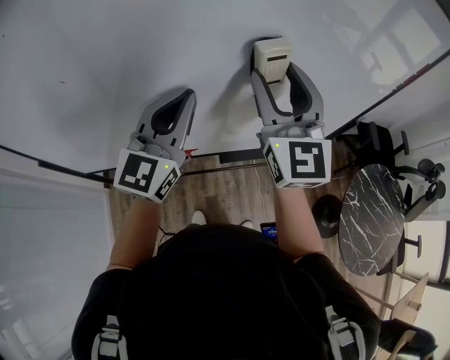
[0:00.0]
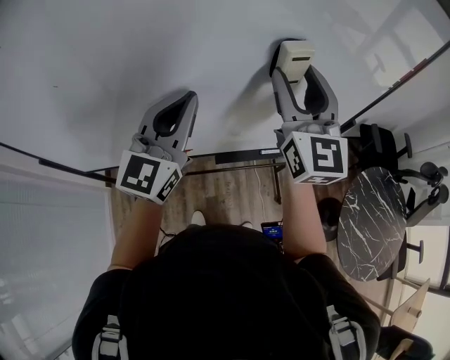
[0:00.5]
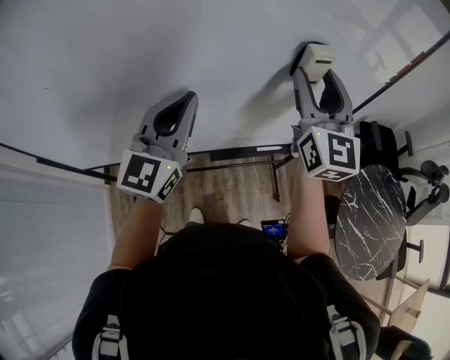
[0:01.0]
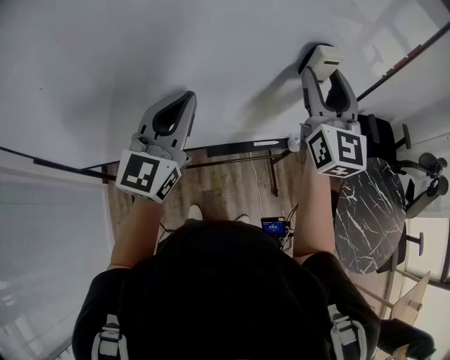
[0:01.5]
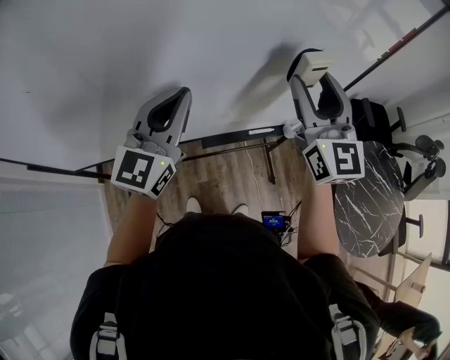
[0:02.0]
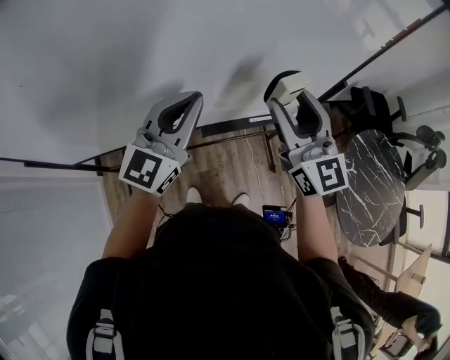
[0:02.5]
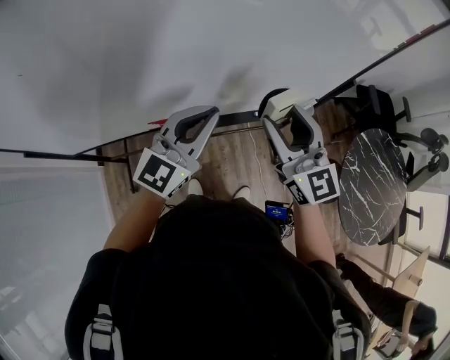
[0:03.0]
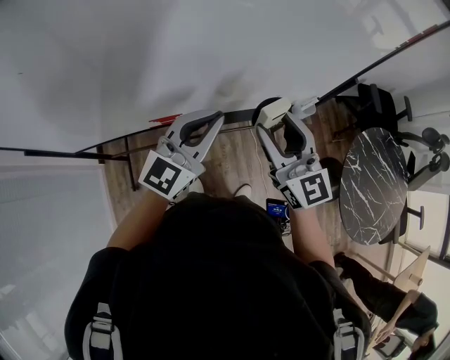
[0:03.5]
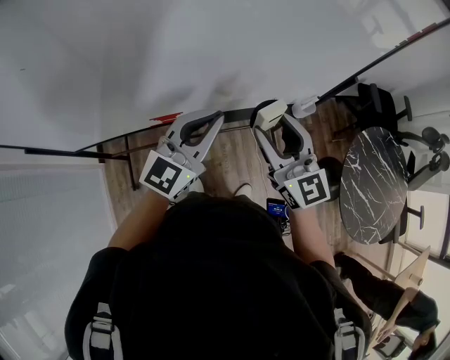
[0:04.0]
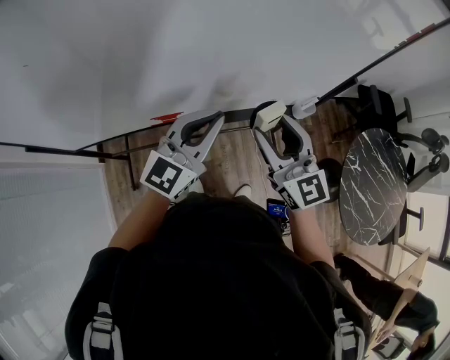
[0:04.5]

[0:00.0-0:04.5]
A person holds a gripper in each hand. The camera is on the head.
0:00.0 to 0:02.0: The left gripper goes roughly 5 cm to the right; the right gripper shifts roughly 15 cm to the right.
0:02.0 to 0:04.5: The right gripper goes some 20 cm downward, backward and to the left. The left gripper is displaced downward and backward by about 10 cm.

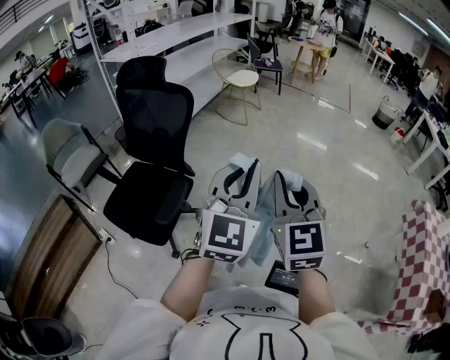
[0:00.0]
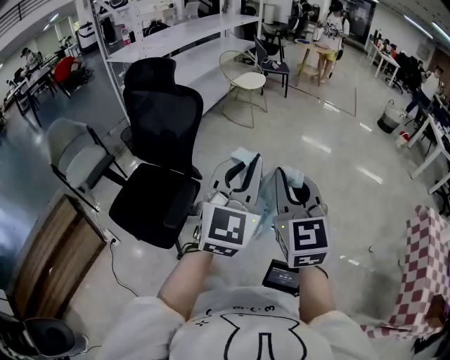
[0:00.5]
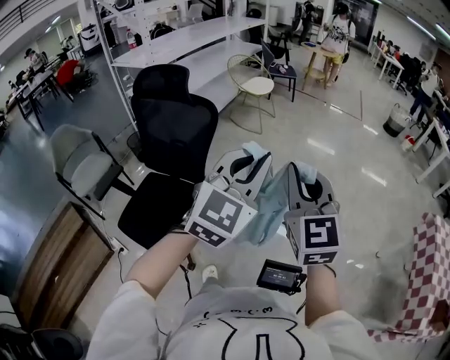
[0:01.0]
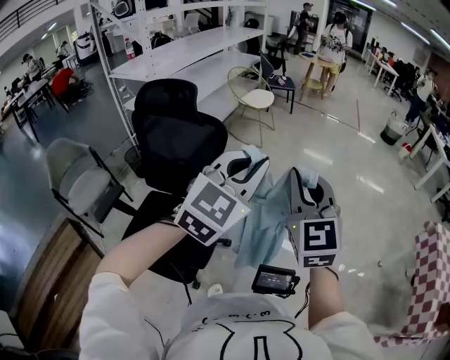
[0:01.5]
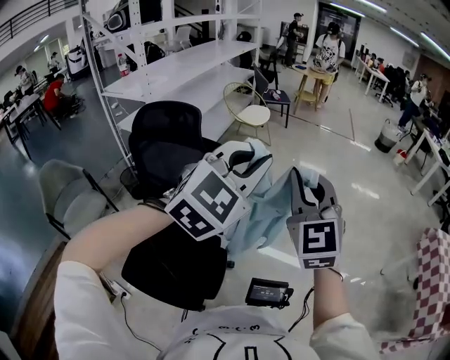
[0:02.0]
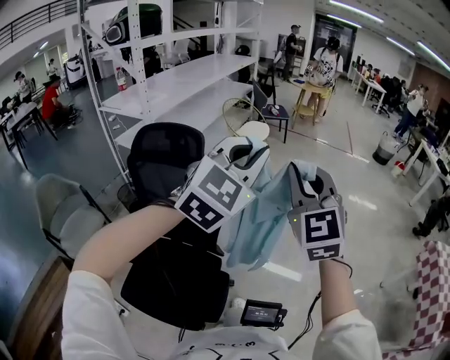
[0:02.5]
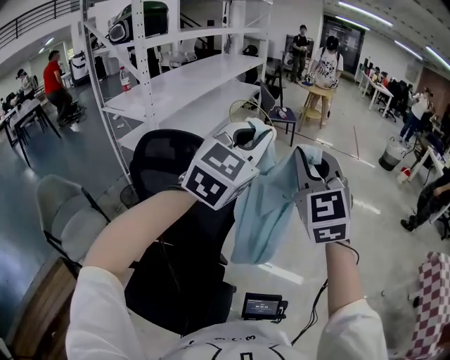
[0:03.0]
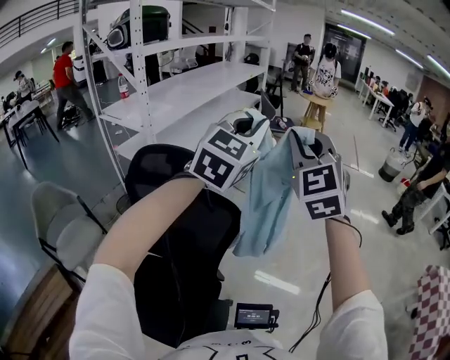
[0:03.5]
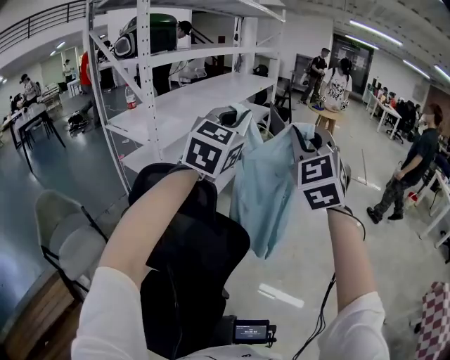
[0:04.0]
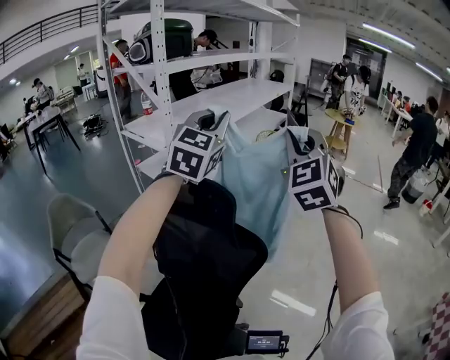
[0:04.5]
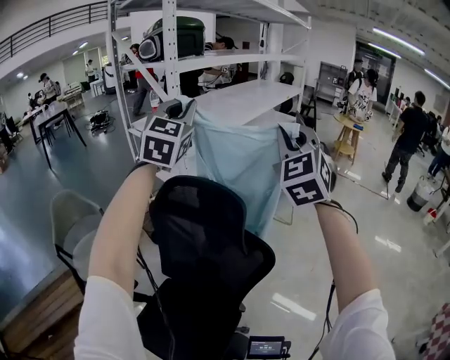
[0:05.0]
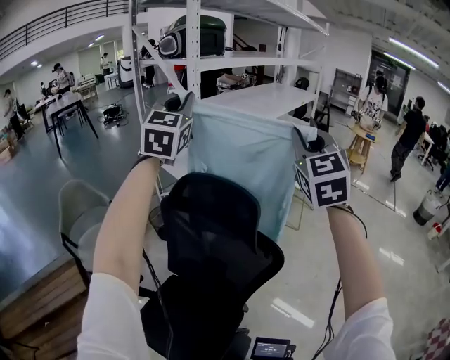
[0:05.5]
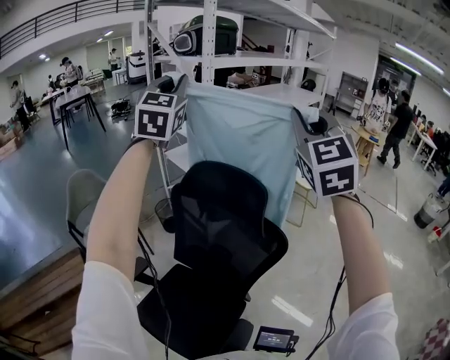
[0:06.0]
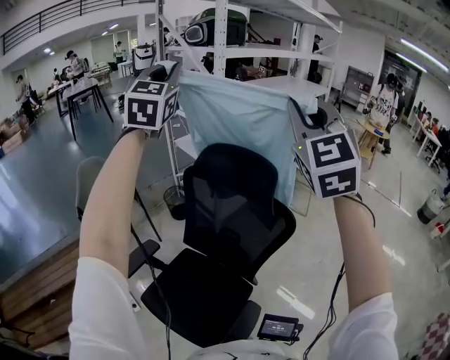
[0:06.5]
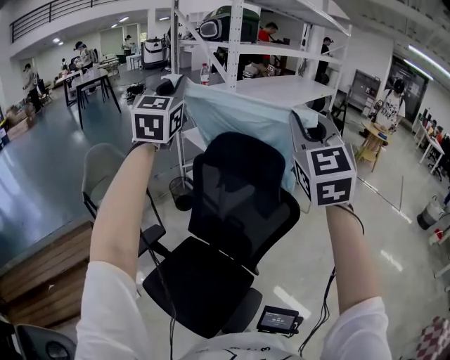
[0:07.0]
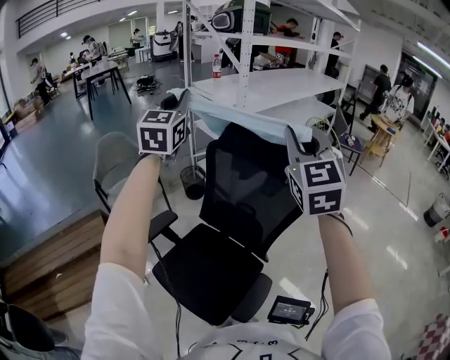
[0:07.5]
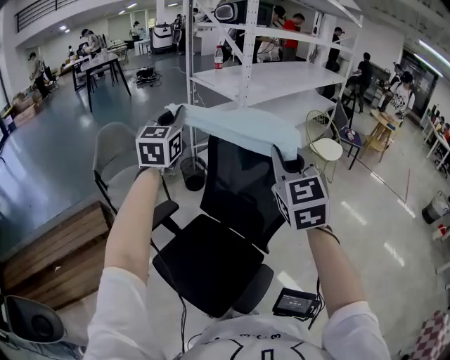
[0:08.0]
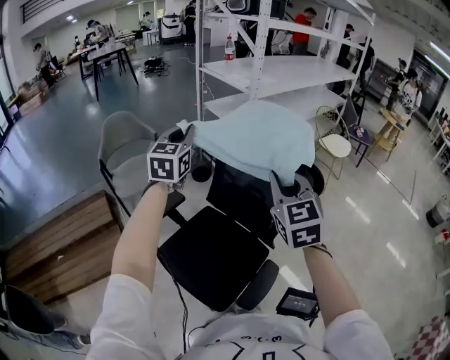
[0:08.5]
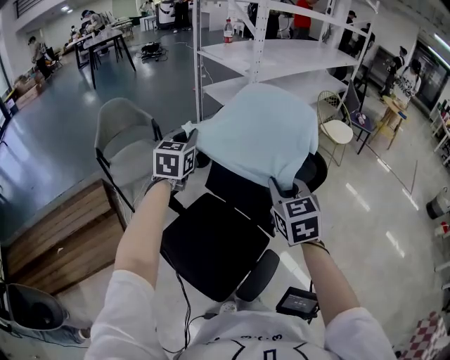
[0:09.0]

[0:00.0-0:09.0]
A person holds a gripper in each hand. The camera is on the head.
0:00.0 to 0:02.0: The grippers both shift to the left and forward by approximately 30 cm. The left gripper rotates approximately 30 degrees.
0:02.0 to 0:04.5: The pair of grippers is taken forward and to the left, approximately 40 cm. The left gripper changes its angle by about 30 degrees.
0:04.5 to 0:07.0: Both grippers move to the left and backward, about 30 cm. The left gripper swivels approximately 30 degrees; the right gripper rotates some 20 degrees.
0:07.0 to 0:09.0: The grippers both shift downward by approximately 30 cm. The right gripper turns by about 40 degrees, while the left gripper turns by roughly 30 degrees.

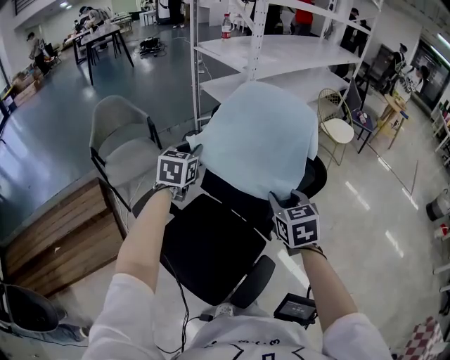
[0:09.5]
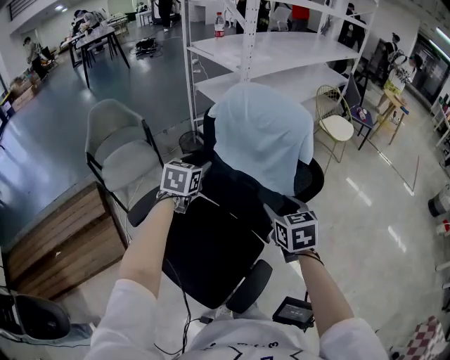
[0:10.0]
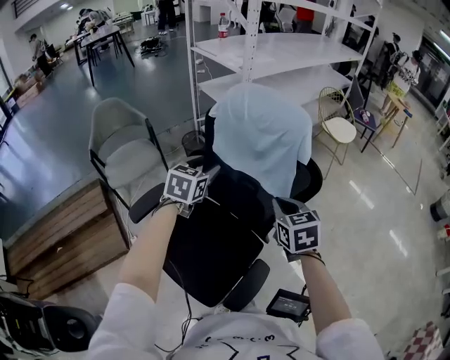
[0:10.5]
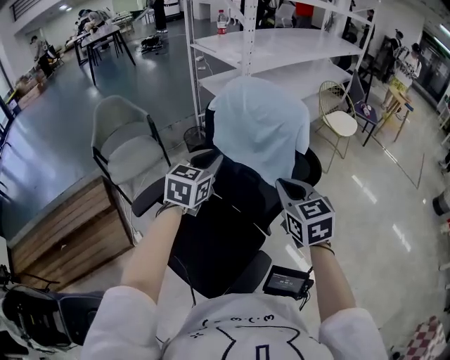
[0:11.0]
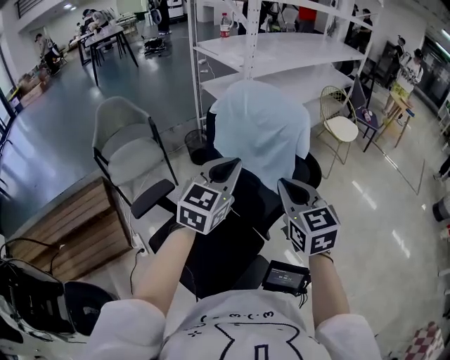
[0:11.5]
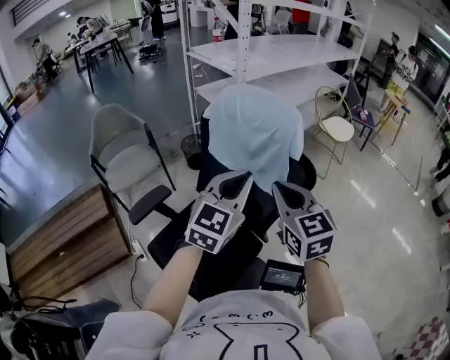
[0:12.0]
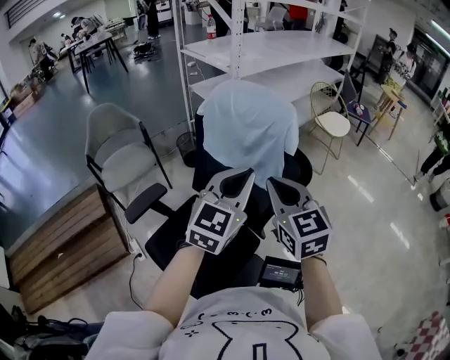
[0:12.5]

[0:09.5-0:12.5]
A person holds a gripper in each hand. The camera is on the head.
0:09.5 to 0:11.0: The right gripper ends up approximately 5 cm from where it was, and closes up; the left gripper is displaced to the right and backward by some 10 cm, and opens, then closes again.
0:11.0 to 0:12.5: The left gripper heads to the right, backward and upward, covering about 15 cm, swivels approximately 20 degrees, and closes.

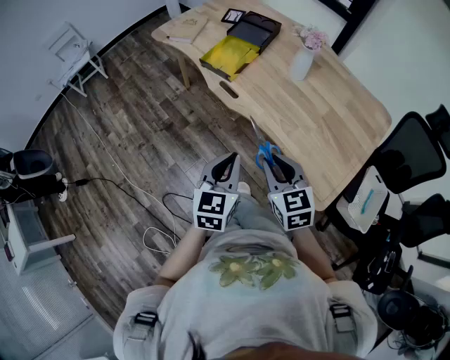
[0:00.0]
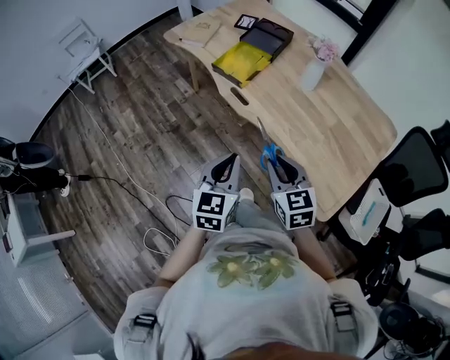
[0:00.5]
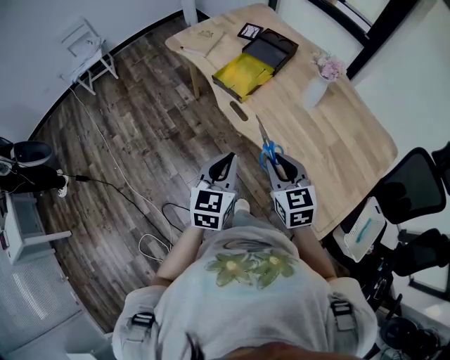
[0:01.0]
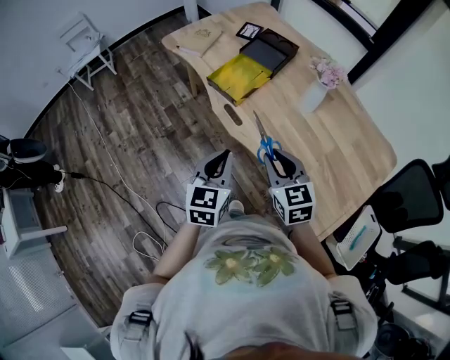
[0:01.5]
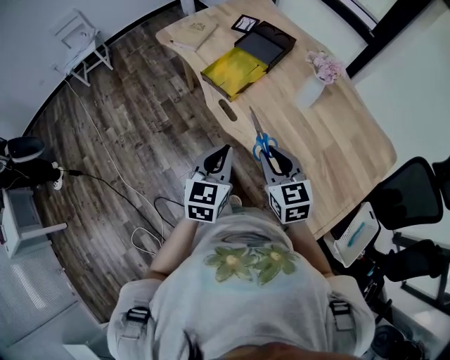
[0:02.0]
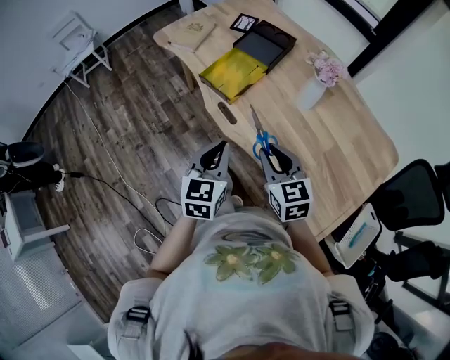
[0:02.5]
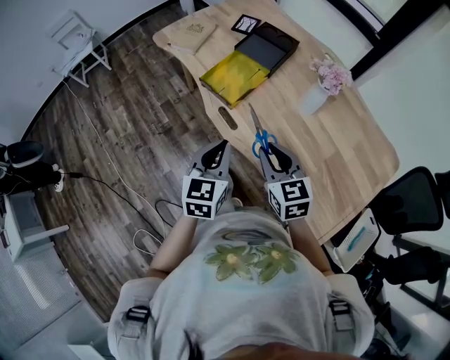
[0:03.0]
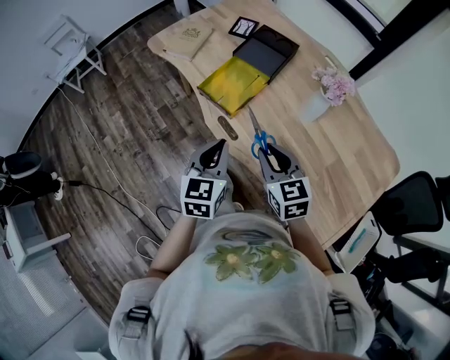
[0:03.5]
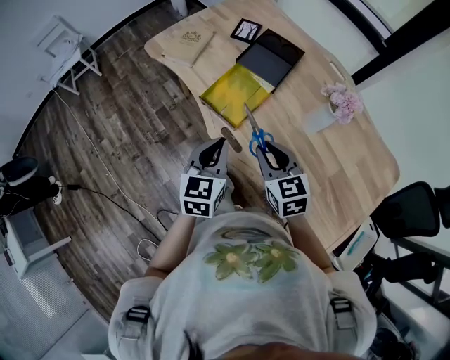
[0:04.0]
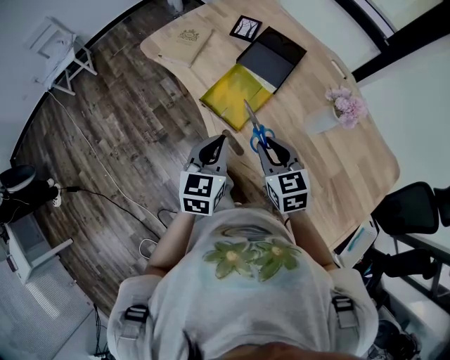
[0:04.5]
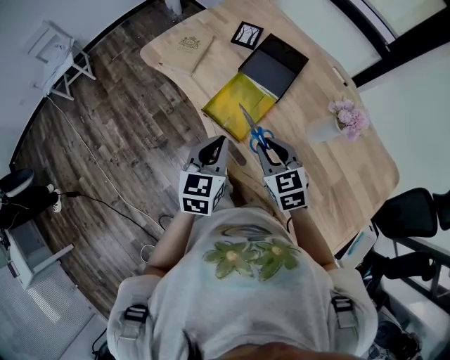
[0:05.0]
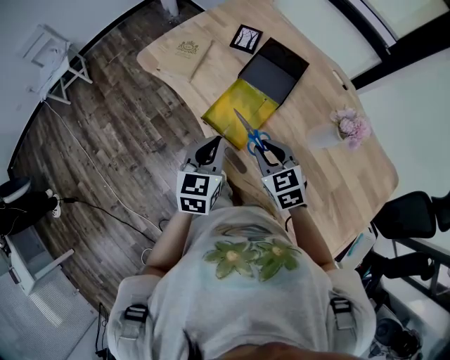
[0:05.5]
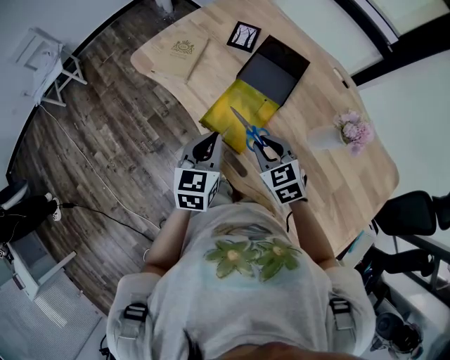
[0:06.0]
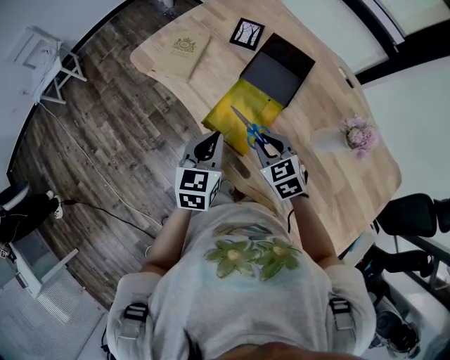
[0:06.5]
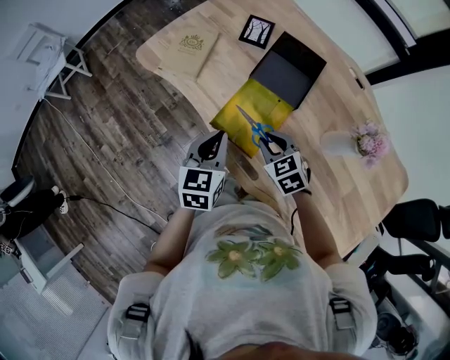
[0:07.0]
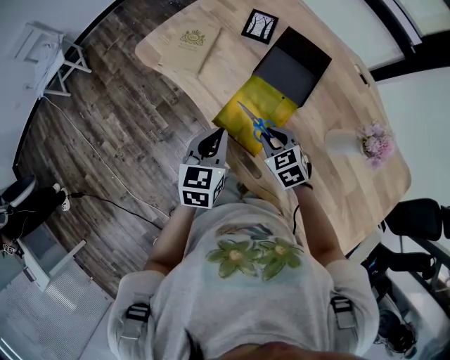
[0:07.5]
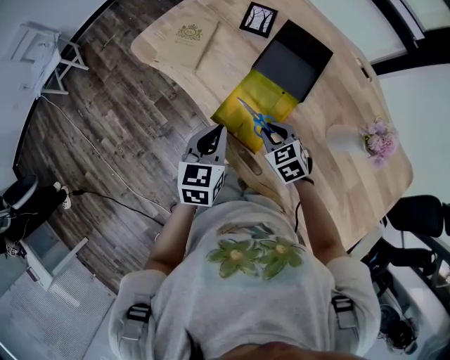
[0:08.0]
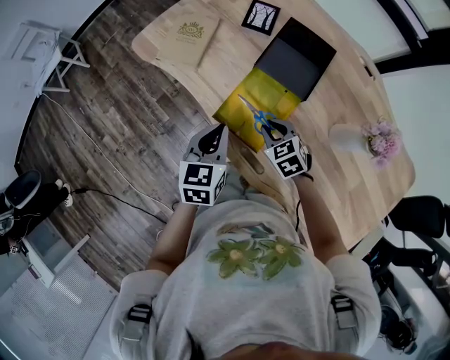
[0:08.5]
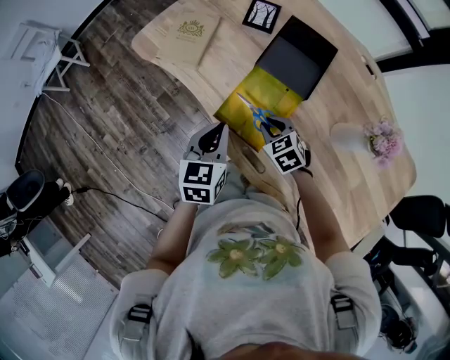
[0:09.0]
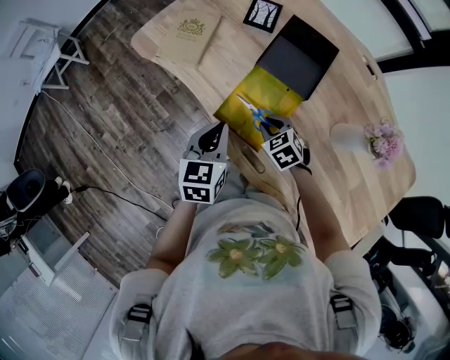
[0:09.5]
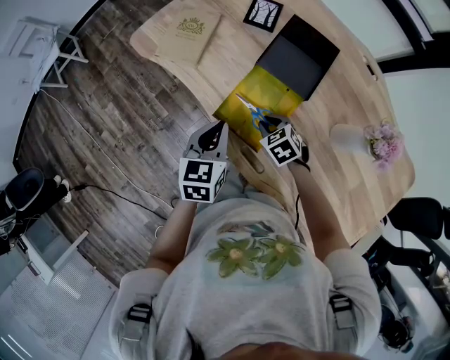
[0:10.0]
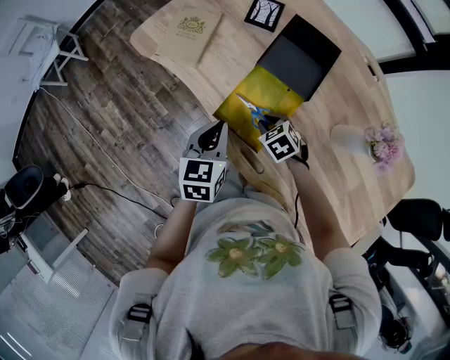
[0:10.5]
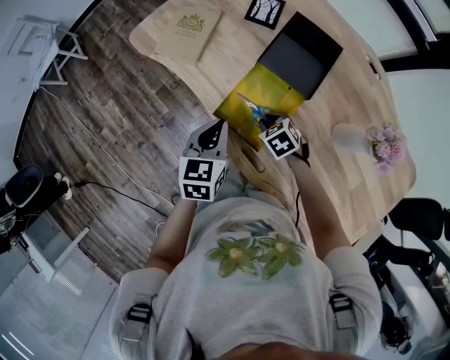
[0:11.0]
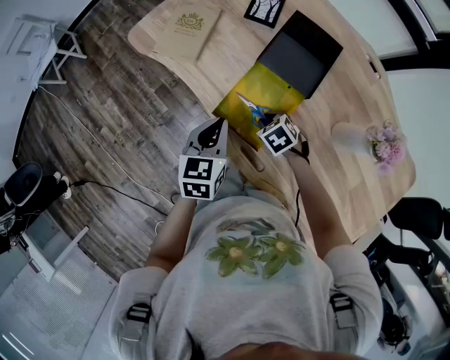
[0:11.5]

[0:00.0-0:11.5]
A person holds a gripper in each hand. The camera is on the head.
0:00.0 to 0:02.0: The grippers both shift forward by roughly 15 cm.
0:02.0 to 0:04.0: Both grippers travel together forward, about 20 cm.
0:04.0 to 0:06.0: The right gripper is displaced forward and downward by approximately 15 cm, while the left gripper moves forward, about 15 cm.
0:06.0 to 0:07.5: The left gripper moves some 5 cm. Meanwhile the right gripper is displaced downward and forward by about 10 cm.
0:07.5 to 0:09.5: The right gripper moves downward, some 5 cm.
0:09.5 to 0:11.5: There are only small adjustments of the grippers.
